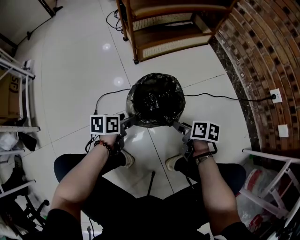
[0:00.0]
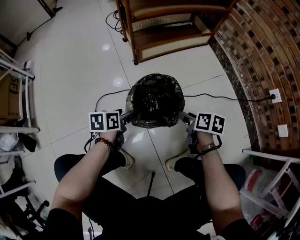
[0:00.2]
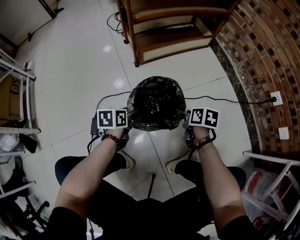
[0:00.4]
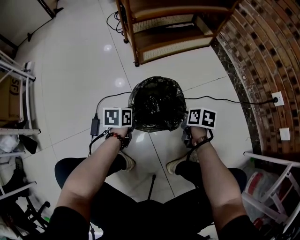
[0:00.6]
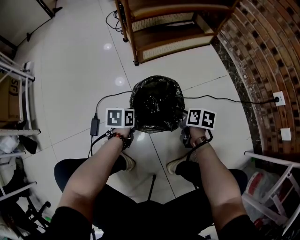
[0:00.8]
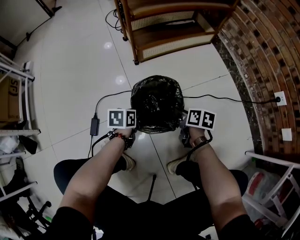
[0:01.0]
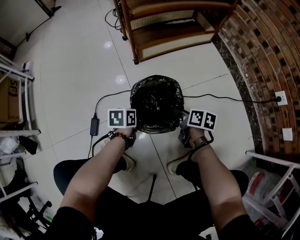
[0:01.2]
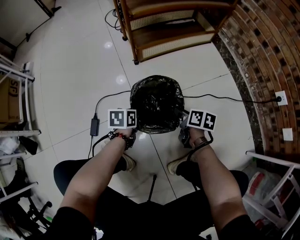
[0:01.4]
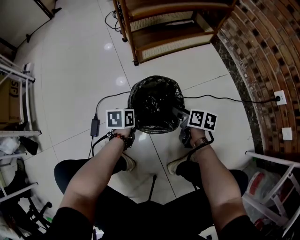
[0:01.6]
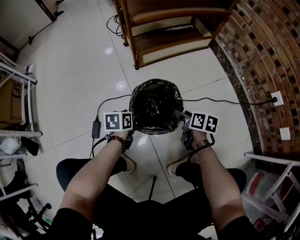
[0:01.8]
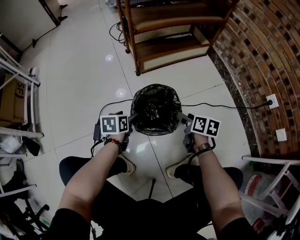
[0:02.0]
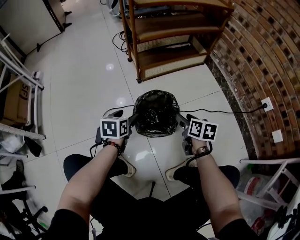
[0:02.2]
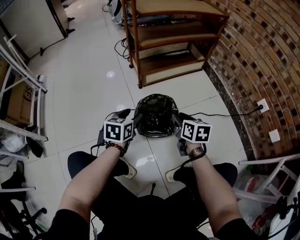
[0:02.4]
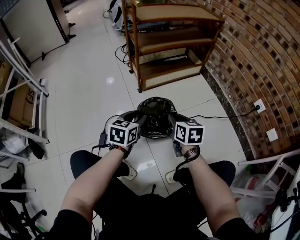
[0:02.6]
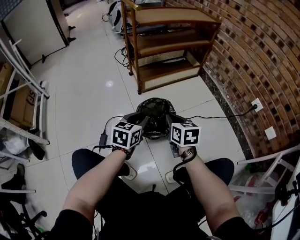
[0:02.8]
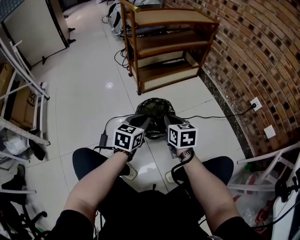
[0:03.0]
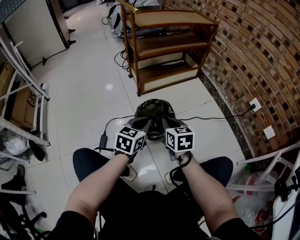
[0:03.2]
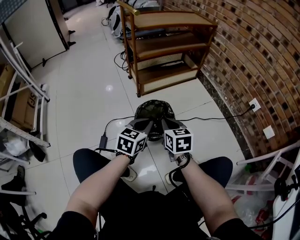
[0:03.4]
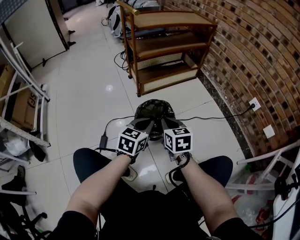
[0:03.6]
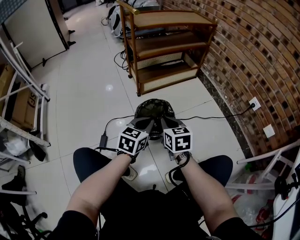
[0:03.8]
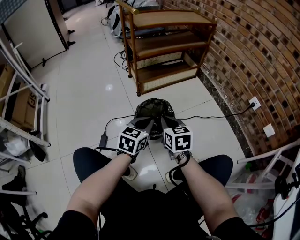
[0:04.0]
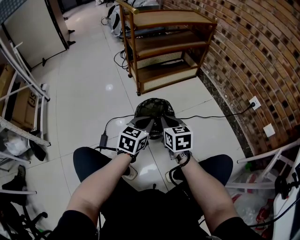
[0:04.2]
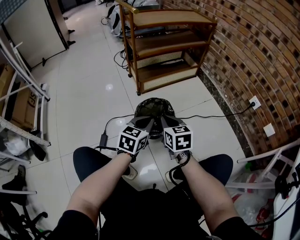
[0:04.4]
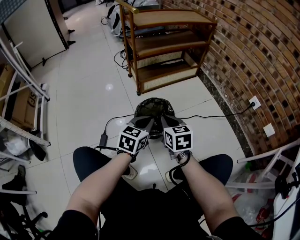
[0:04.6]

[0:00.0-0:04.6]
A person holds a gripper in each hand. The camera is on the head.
0:00.0 to 0:01.6: Both grippers travel together forward, roughly 5 cm. The right gripper closes and opens again.
0:01.6 to 0:03.0: The two grippers go roughly 20 cm upward. The left gripper changes its angle by roughly 40 degrees, and closes up; the right gripper turns by about 40 degrees, and closes its fingers.
0:03.0 to 0:04.6: The grippers stay close to where they were, moving slightly.

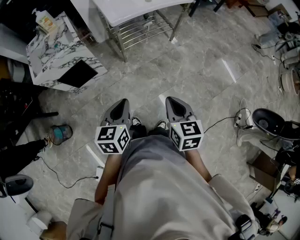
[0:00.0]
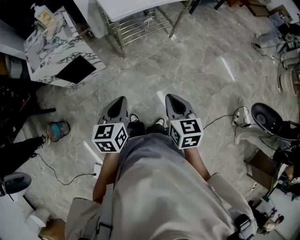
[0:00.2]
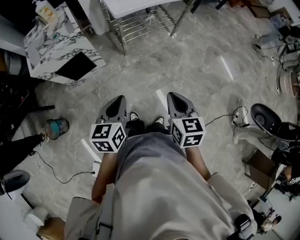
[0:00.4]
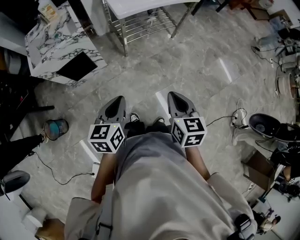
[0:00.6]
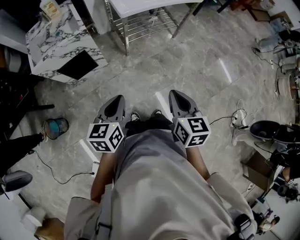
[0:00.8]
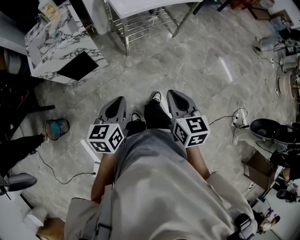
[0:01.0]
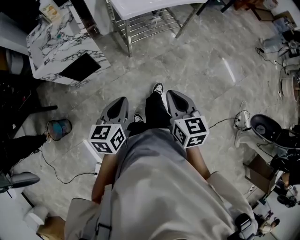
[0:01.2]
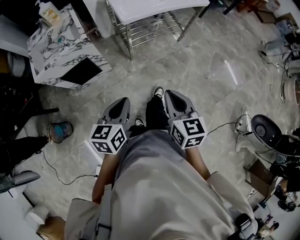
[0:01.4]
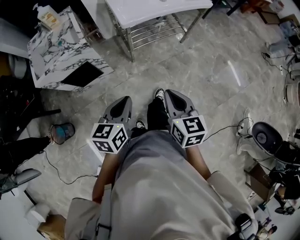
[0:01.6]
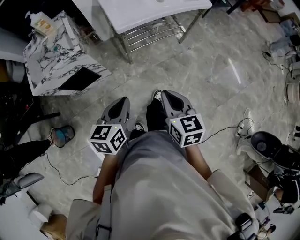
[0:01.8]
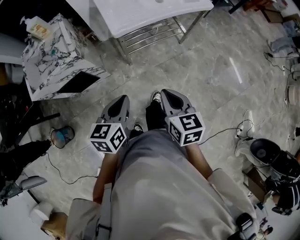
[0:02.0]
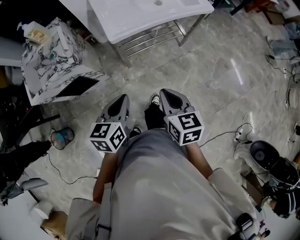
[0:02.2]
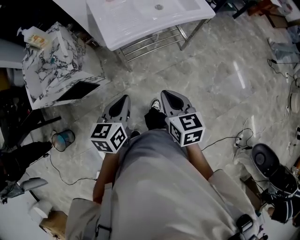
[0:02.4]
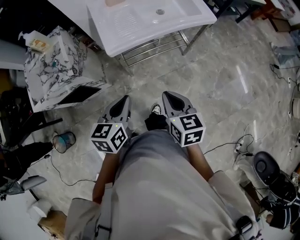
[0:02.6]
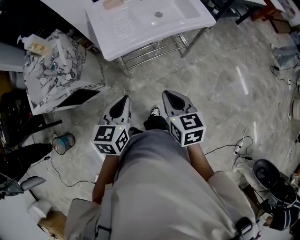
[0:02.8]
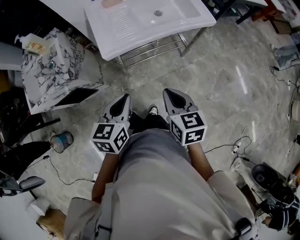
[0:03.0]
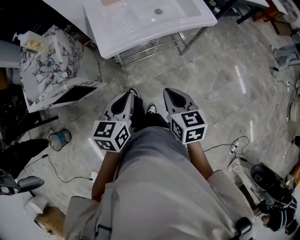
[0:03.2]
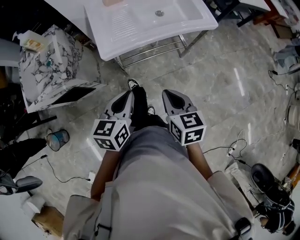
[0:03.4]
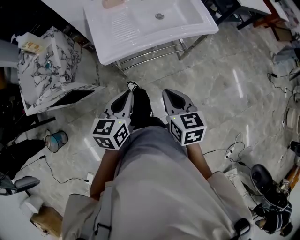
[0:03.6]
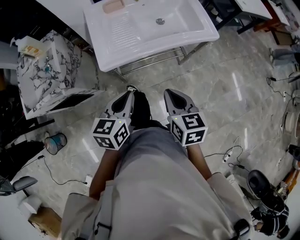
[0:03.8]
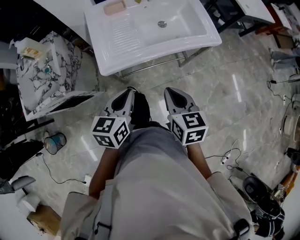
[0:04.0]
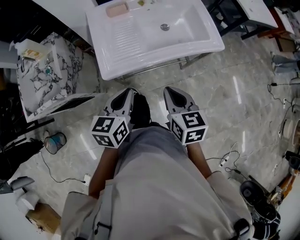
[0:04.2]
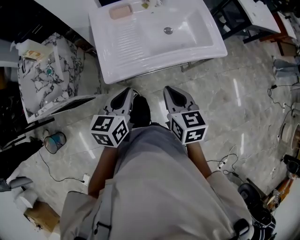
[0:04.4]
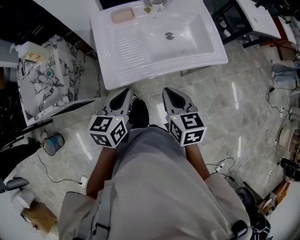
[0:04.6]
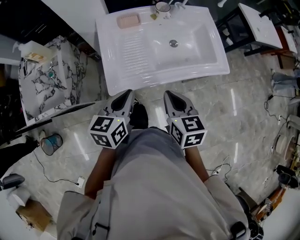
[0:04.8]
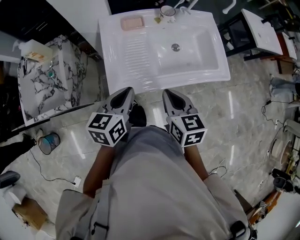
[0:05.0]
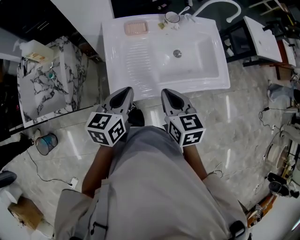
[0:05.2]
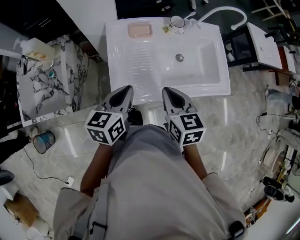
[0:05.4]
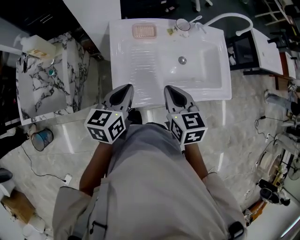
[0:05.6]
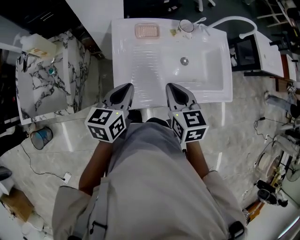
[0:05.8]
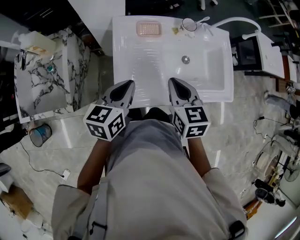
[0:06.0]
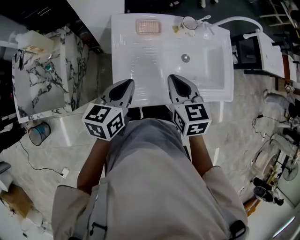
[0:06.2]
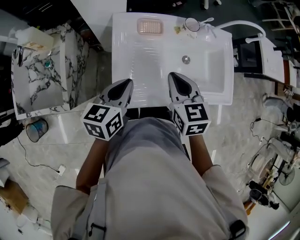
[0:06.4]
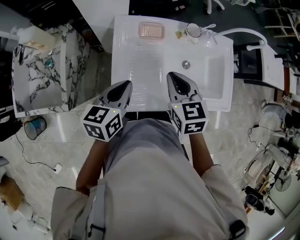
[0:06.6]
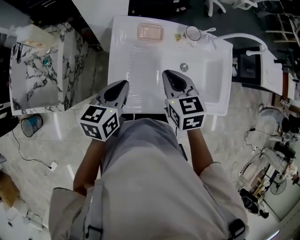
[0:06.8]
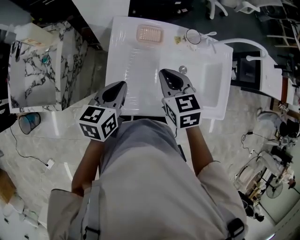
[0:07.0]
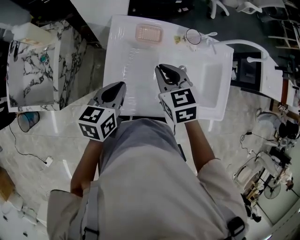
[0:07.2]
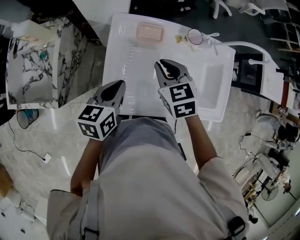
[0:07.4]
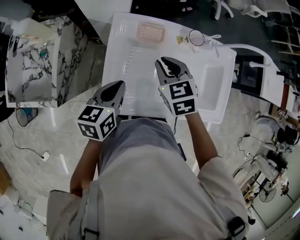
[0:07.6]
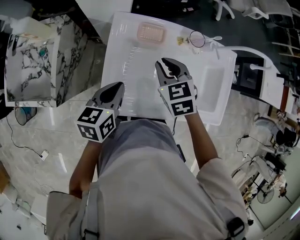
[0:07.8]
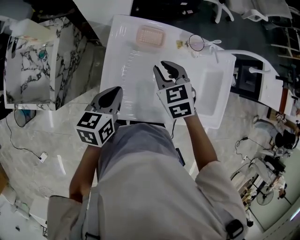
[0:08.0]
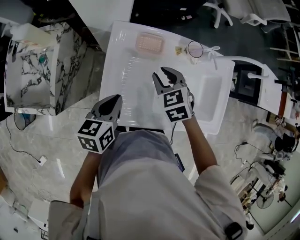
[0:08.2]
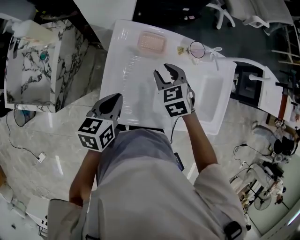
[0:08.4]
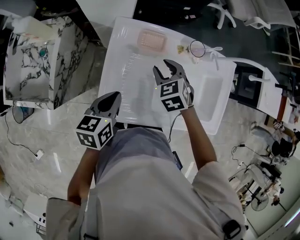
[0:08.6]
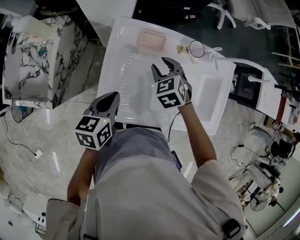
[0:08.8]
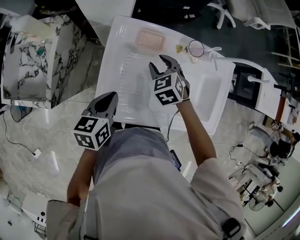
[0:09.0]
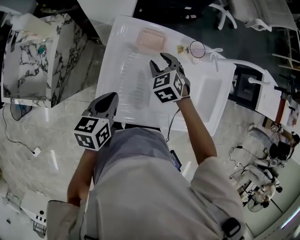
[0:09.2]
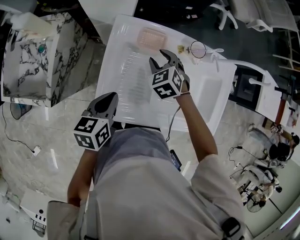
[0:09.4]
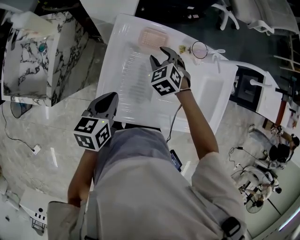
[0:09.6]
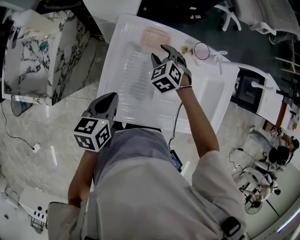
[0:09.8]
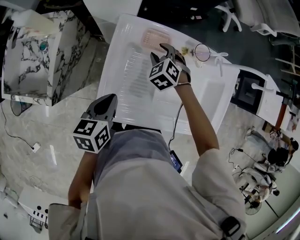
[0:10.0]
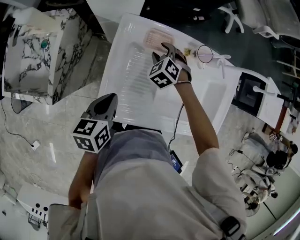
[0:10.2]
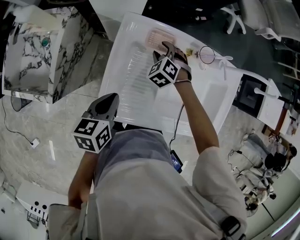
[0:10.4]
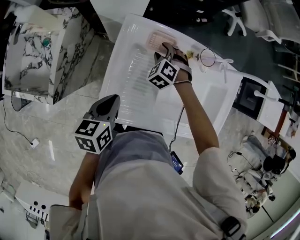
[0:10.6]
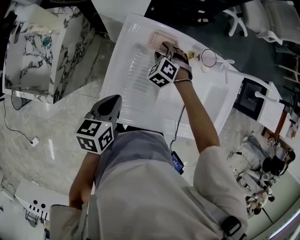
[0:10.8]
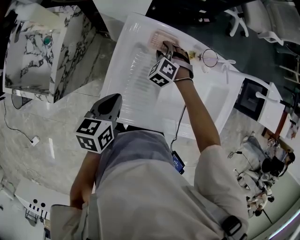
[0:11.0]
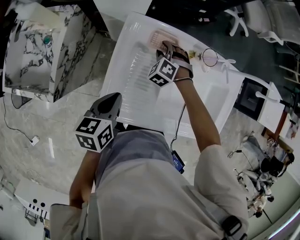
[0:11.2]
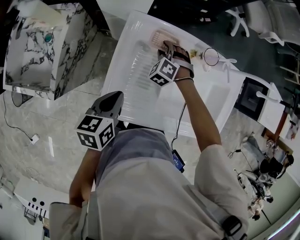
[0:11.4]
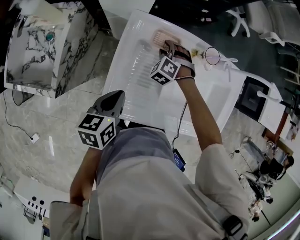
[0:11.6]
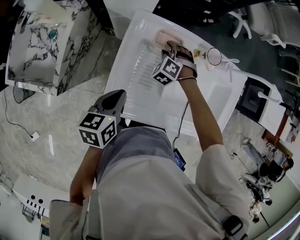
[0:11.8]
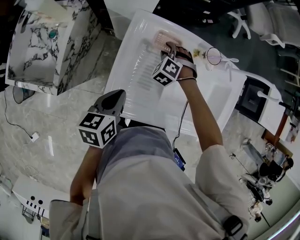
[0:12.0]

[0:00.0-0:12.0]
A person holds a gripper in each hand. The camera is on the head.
0:00.0 to 0:01.6: The left gripper travels forward by approximately 10 cm; the right gripper moves forward and to the left, roughly 15 cm.
0:01.6 to 0:03.0: The grippers both shift forward and to the right by about 25 cm.
0:03.0 to 0:04.4: Both grippers move forward, some 20 cm.
0:04.4 to 0:06.0: Both grippers travel together forward and to the left, approximately 20 cm.
0:06.0 to 0:07.6: The right gripper heads forward, covering some 15 cm, and changes its angle by approximately 30 degrees. The left gripper changes place by roughly 5 cm.
0:07.6 to 0:09.0: The right gripper shifts some 10 cm downward, and opens its fingers.
0:09.0 to 0:10.4: The right gripper moves downward and forward, some 10 cm, and rotates approximately 20 degrees.
0:10.4 to 0:12.0: The grippers move only a little.

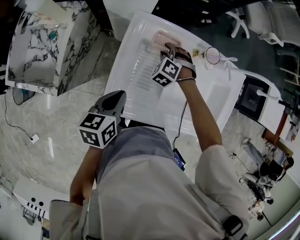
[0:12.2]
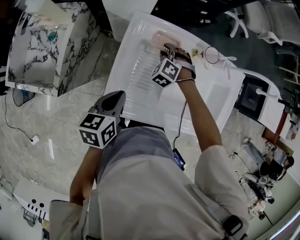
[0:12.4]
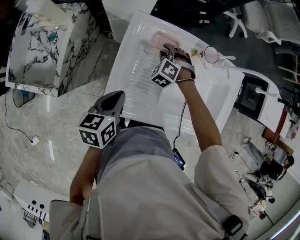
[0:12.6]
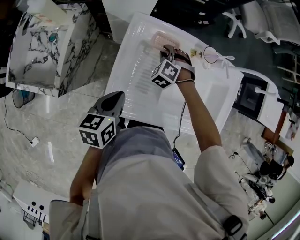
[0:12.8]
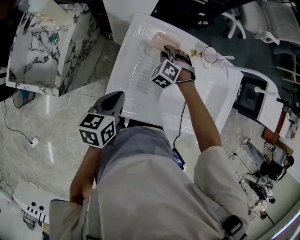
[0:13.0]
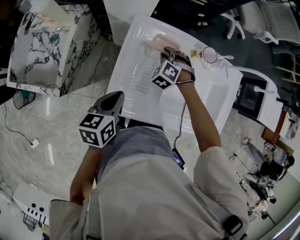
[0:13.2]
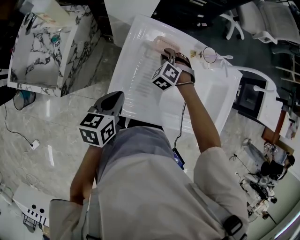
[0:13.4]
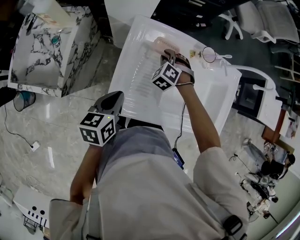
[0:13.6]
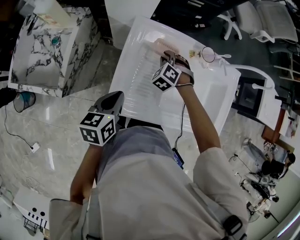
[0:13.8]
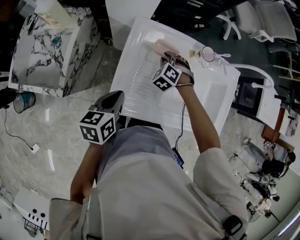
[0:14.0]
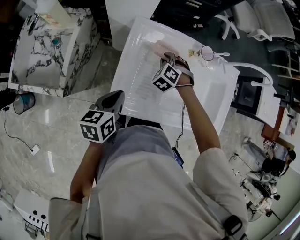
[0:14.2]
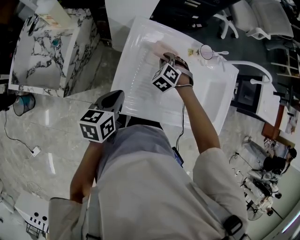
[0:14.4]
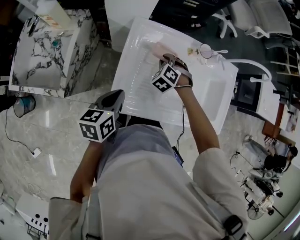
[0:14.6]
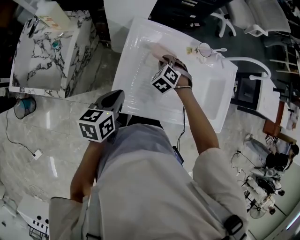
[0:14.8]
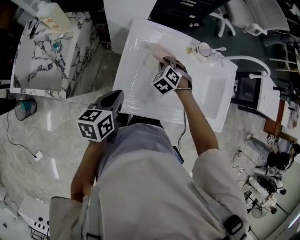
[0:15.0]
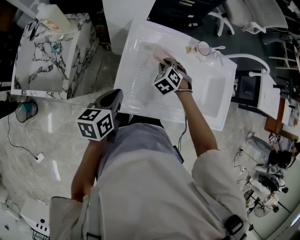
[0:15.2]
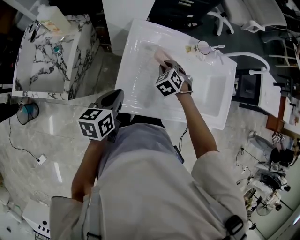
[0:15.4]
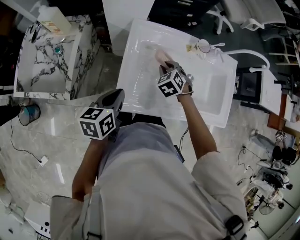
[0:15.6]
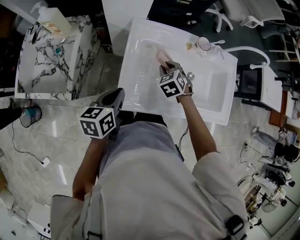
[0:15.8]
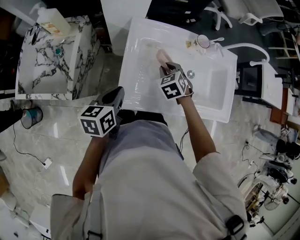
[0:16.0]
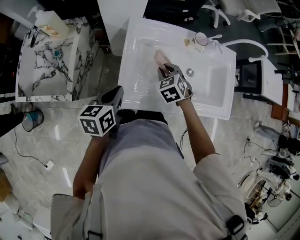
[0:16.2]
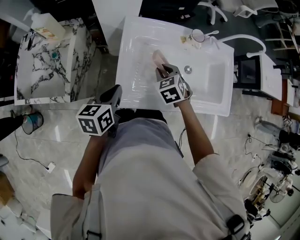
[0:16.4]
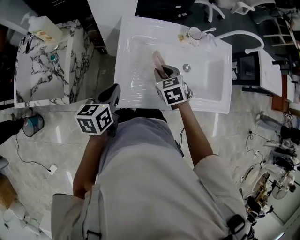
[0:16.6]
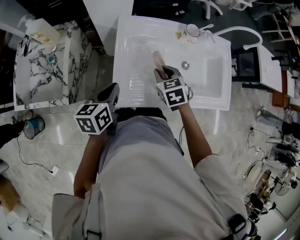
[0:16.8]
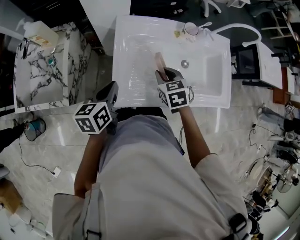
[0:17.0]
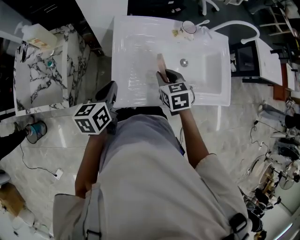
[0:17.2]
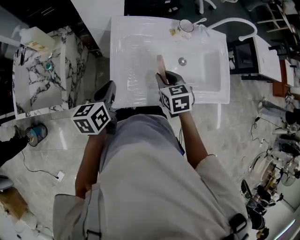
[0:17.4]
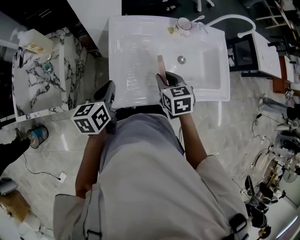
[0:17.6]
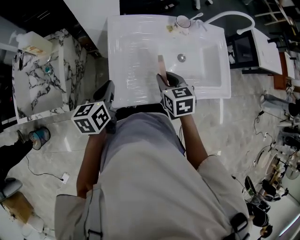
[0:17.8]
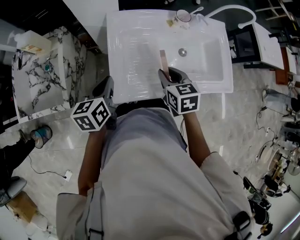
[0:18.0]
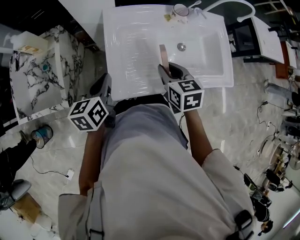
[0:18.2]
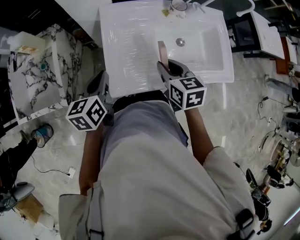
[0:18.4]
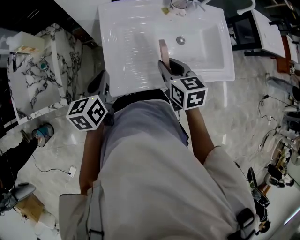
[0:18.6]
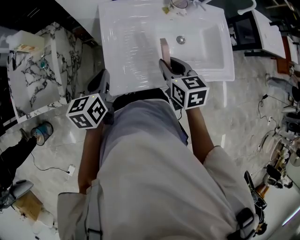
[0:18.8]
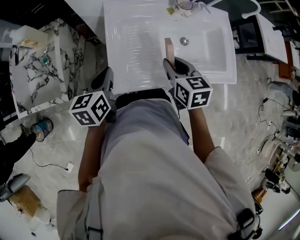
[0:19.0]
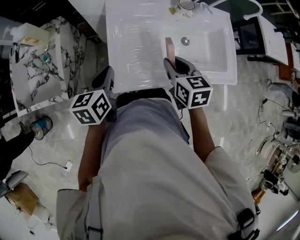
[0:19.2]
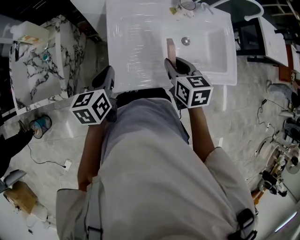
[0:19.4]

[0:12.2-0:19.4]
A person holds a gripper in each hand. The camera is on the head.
0:12.2 to 0:13.6: The grippers stay close to where they were, moving slightly.
0:13.6 to 0:15.0: The right gripper moves approximately 5 cm.
0:15.0 to 0:16.6: The right gripper shifts roughly 10 cm backward and upward, and rotates about 40 degrees.
0:16.6 to 0:18.0: The right gripper goes roughly 5 cm backward, and rotates roughly 20 degrees.
0:18.0 to 0:19.4: There are only small adjustments of the grippers.
